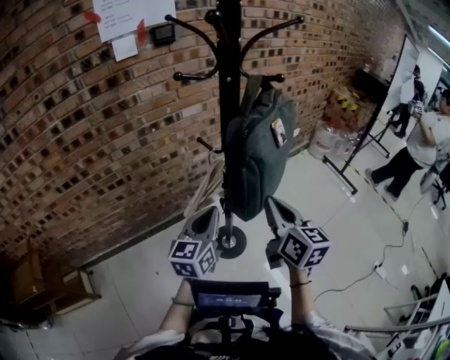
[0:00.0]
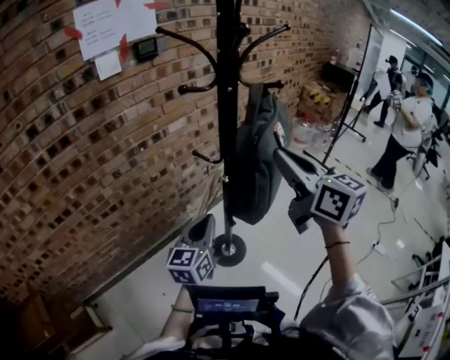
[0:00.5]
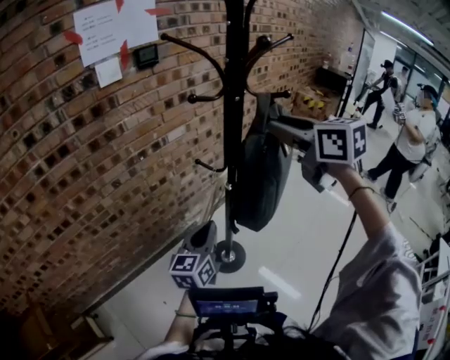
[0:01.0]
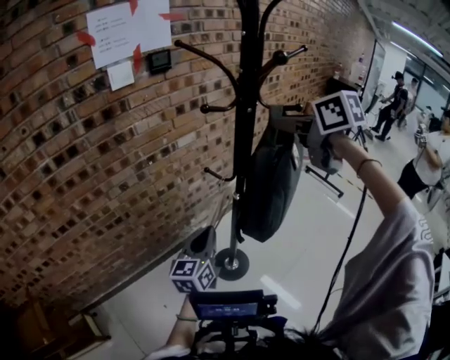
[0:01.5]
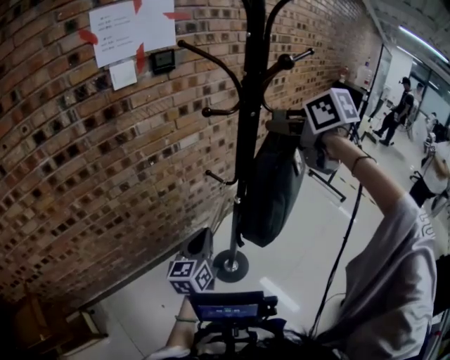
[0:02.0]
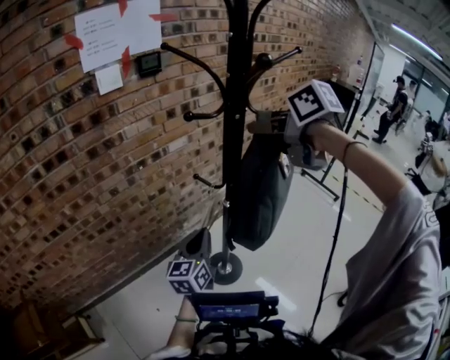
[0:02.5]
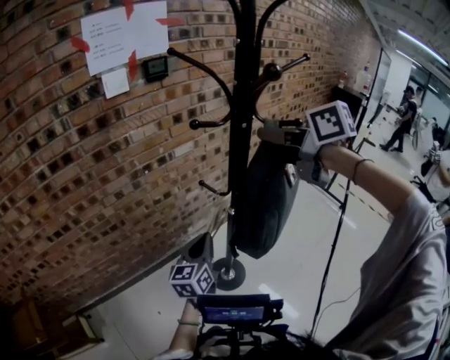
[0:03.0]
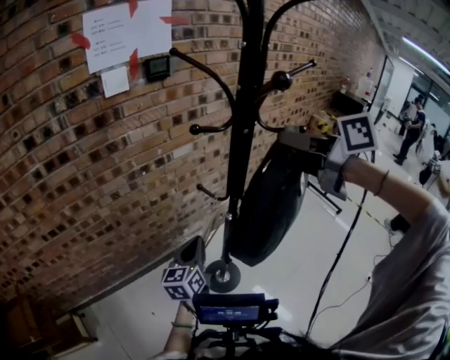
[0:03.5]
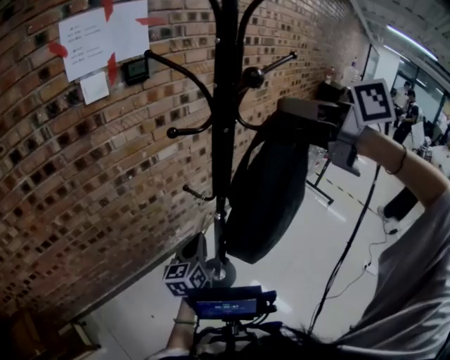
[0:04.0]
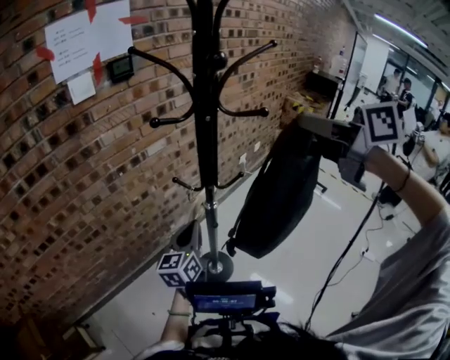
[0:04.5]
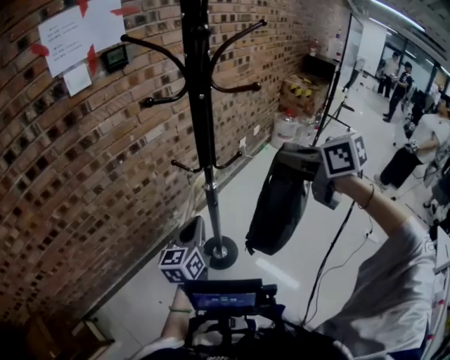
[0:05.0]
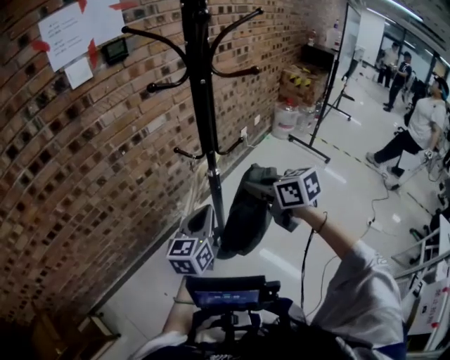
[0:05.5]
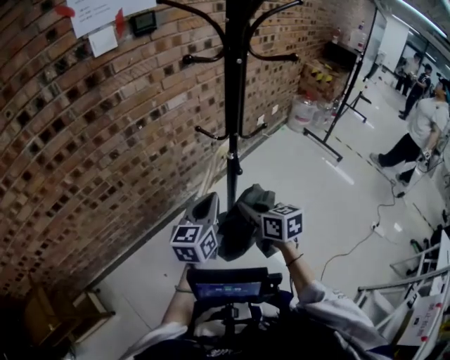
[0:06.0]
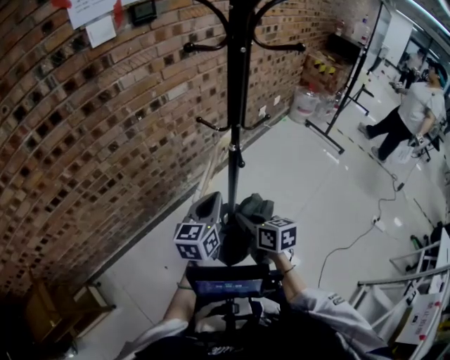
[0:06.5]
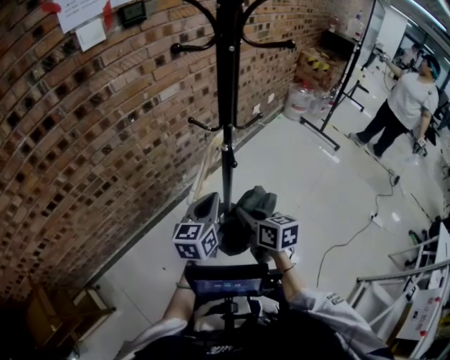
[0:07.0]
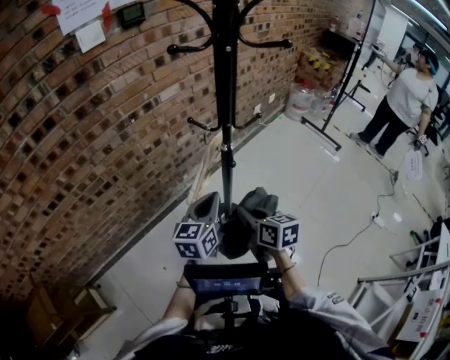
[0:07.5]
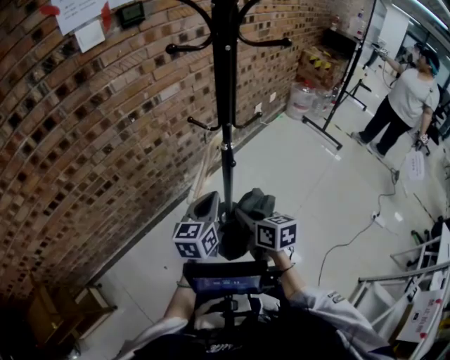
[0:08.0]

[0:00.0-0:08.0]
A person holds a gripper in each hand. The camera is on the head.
0:00.0 to 0:02.0: The left gripper goes approximately 10 cm to the left and forward. The right gripper travels upward and forward by approximately 30 cm, turns by about 30 degrees, and opens its fingers.
0:02.0 to 0:04.0: The right gripper heads upward and backward, covering some 10 cm, changes its angle by about 20 degrees, and closes. Meanwhile the left gripper moves to the right, approximately 5 cm.
0:04.0 to 0:06.0: The right gripper shifts some 50 cm downward, and rotates some 20 degrees. Meanwhile the left gripper moves backward, some 10 cm.
0:06.0 to 0:08.0: The right gripper shifts by approximately 5 cm.

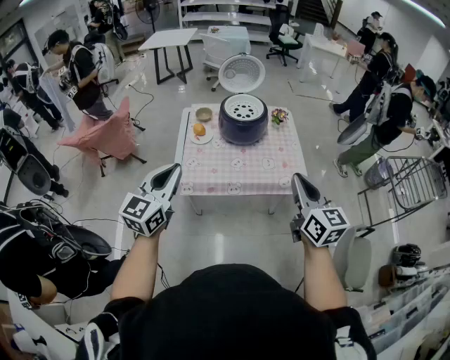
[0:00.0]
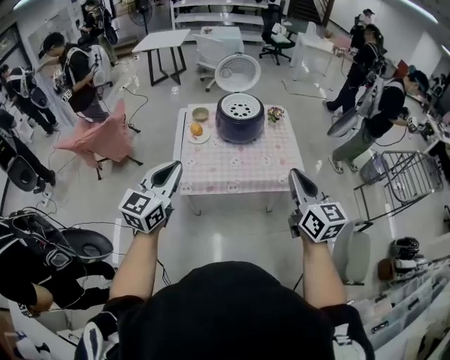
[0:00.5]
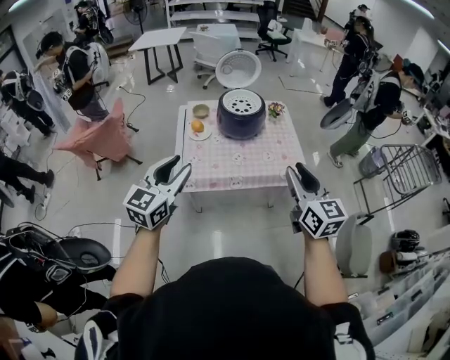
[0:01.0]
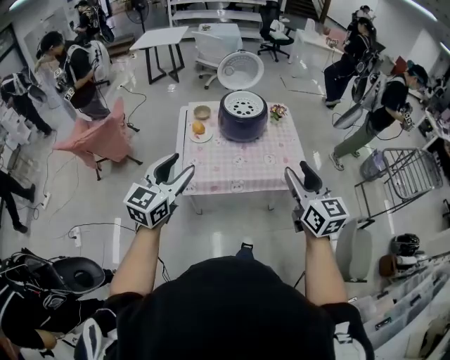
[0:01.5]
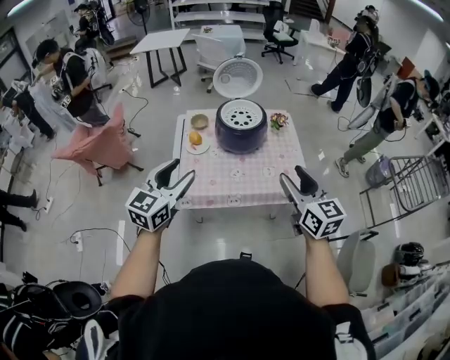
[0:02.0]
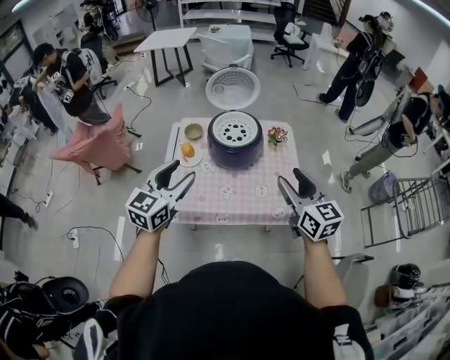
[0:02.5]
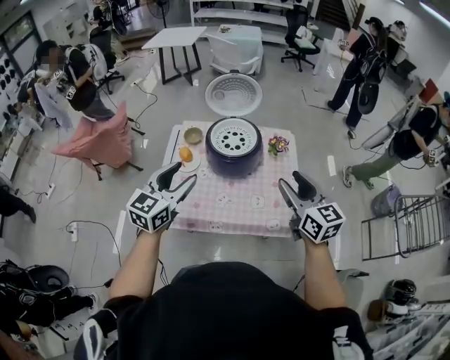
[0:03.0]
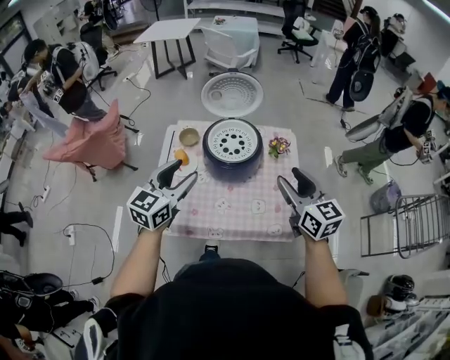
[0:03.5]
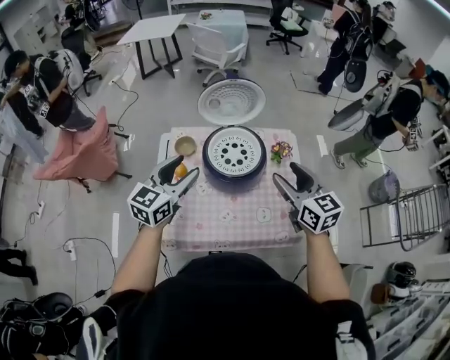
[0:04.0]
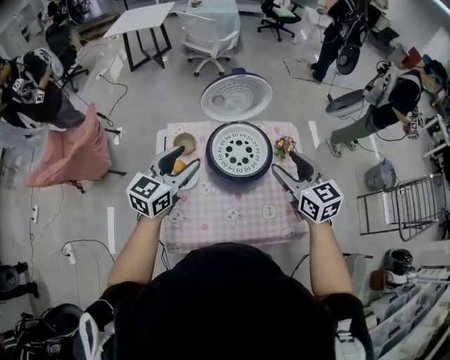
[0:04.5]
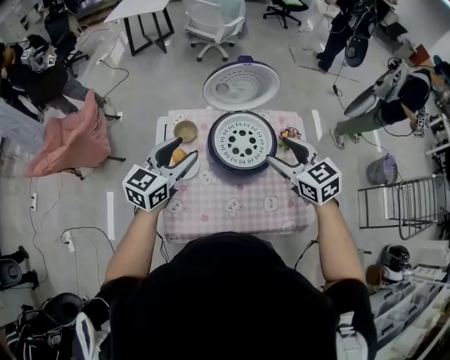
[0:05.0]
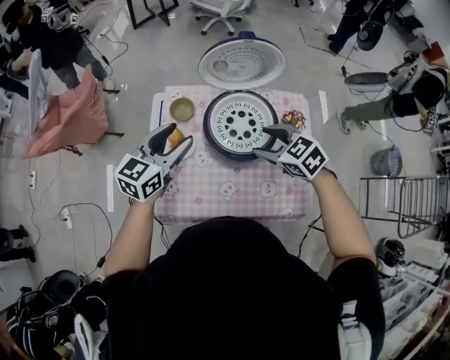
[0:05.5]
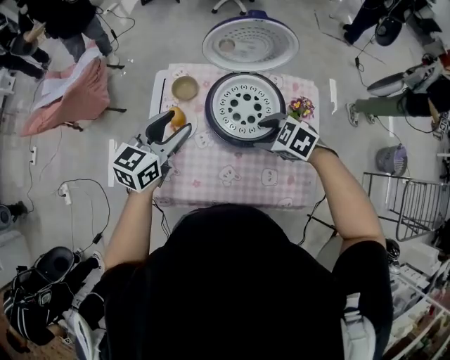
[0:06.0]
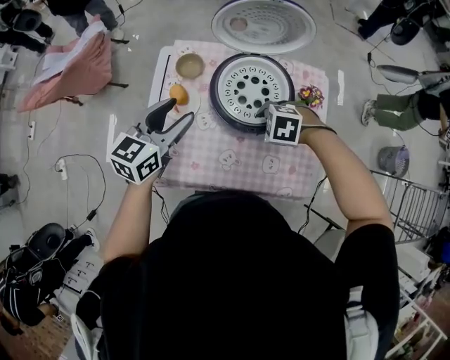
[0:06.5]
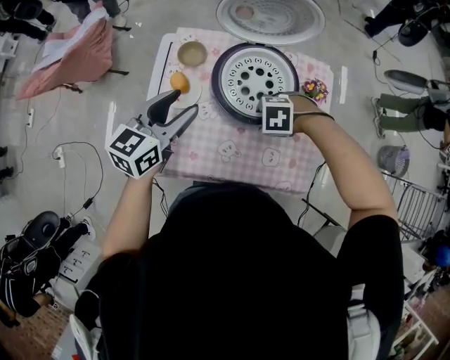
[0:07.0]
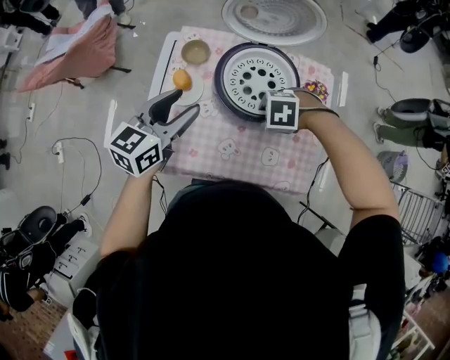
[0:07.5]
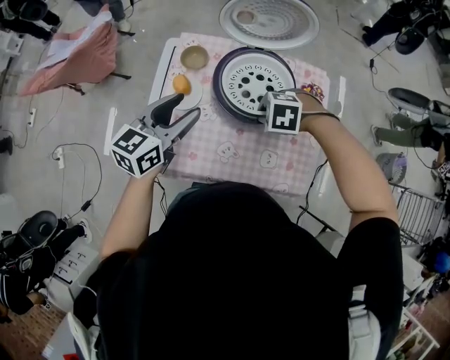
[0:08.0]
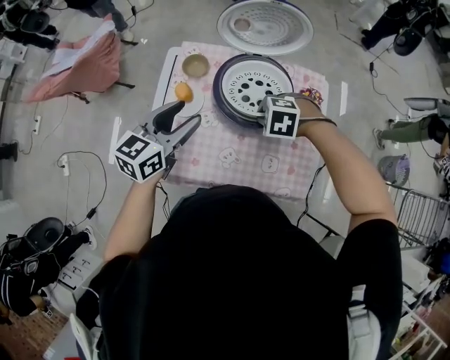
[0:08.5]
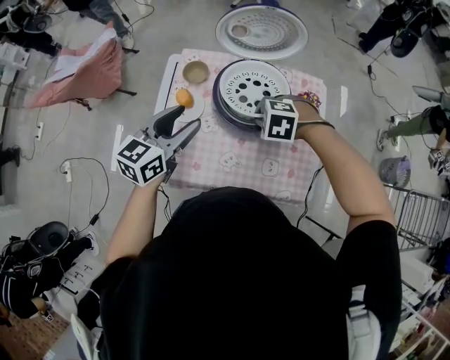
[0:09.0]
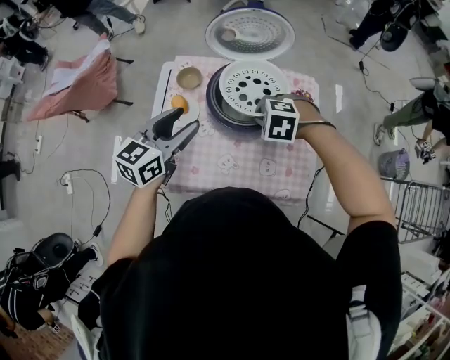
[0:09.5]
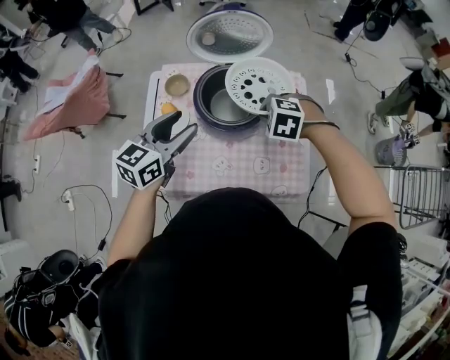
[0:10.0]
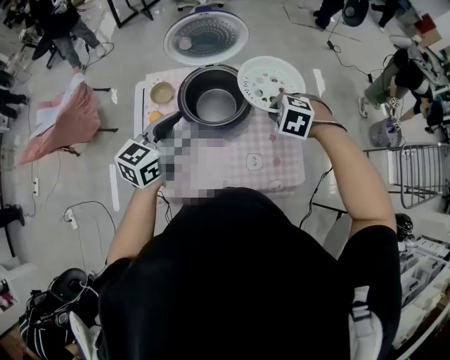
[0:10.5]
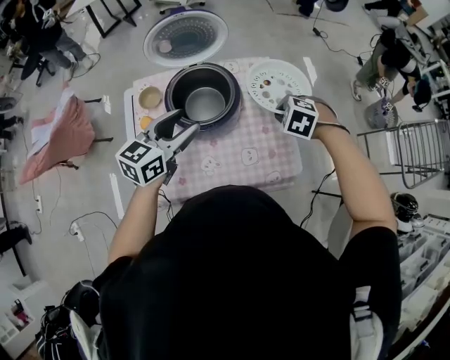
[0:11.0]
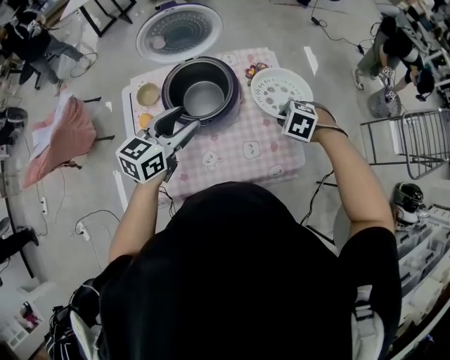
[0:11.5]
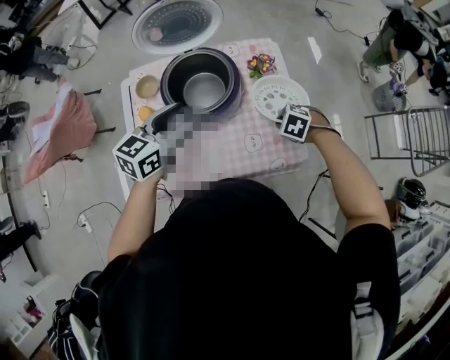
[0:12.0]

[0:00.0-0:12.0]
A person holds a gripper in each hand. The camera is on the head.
0:00.0 to 0:02.0: Both grippers move forward, about 10 cm. The right gripper opens up, while the left gripper opens its fingers.
0:02.0 to 0:04.0: Both grippers move forward, some 30 cm.
0:04.0 to 0:06.0: The left gripper heads downward, covering some 10 cm, while the right gripper travels downward by approximately 20 cm, and tilts its fingers about 40 degrees downward.
0:06.0 to 0:08.0: The right gripper rotates approximately 30 degrees, and closes.
0:08.0 to 0:10.0: The left gripper moves roughly 5 cm, while the right gripper changes place by some 10 cm.
0:10.0 to 0:12.0: The right gripper ends up approximately 20 cm from where it was, and changes its angle by approximately 30 degrees. The left gripper shifts by approximately 10 cm.

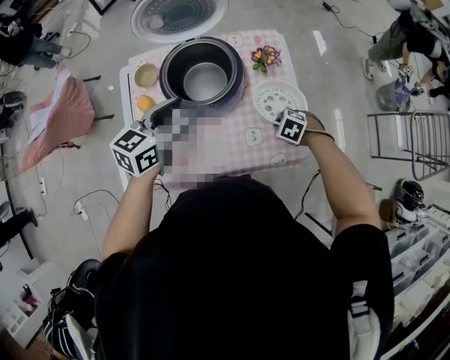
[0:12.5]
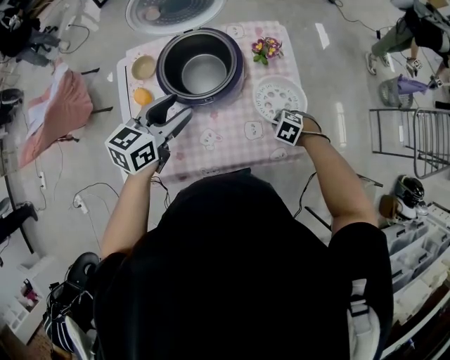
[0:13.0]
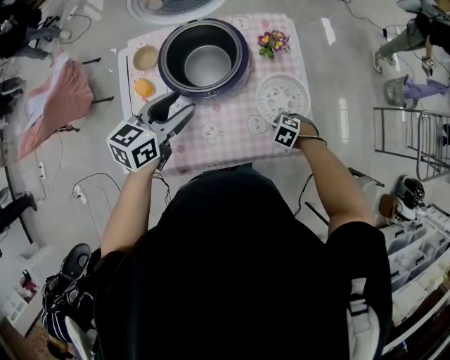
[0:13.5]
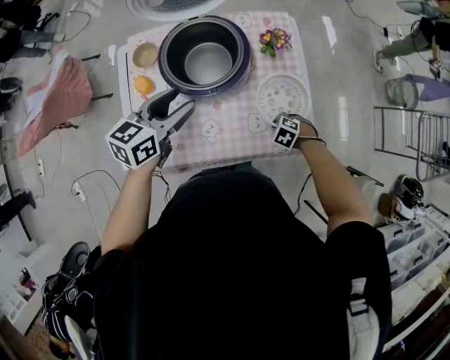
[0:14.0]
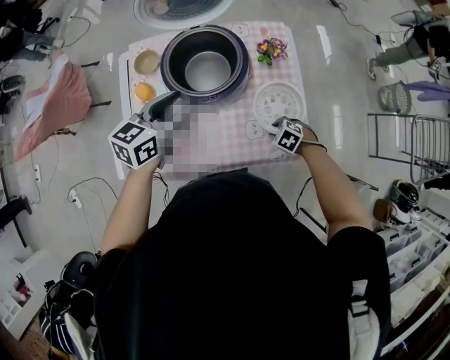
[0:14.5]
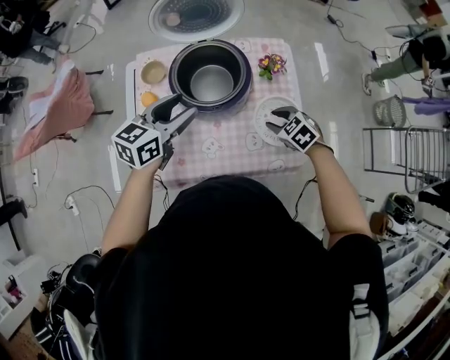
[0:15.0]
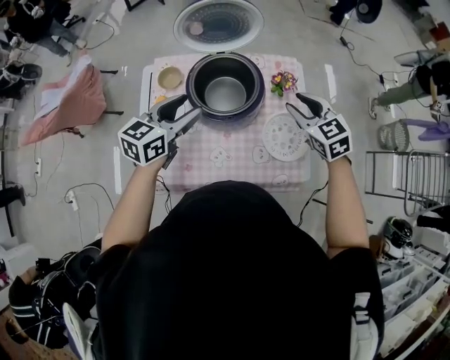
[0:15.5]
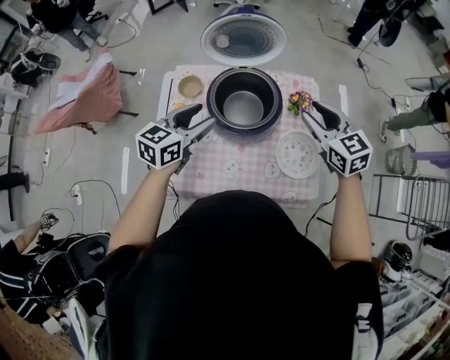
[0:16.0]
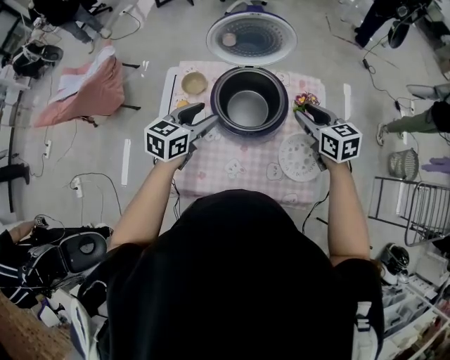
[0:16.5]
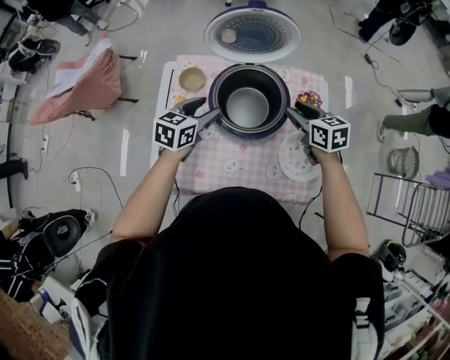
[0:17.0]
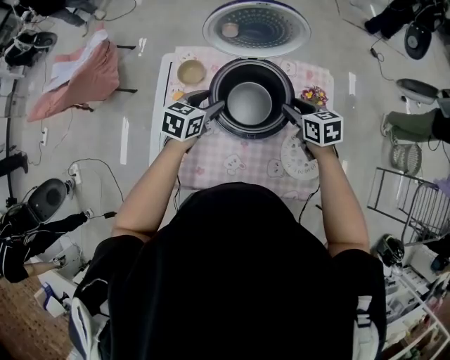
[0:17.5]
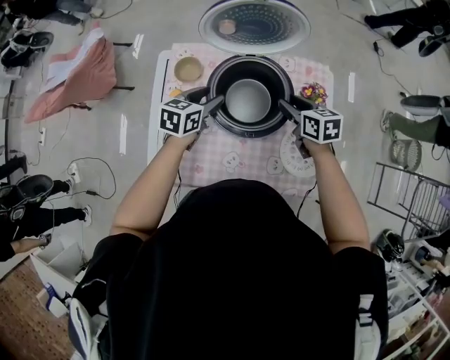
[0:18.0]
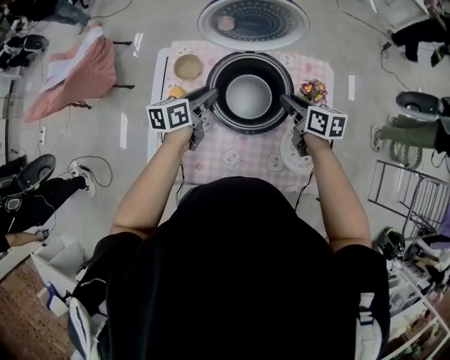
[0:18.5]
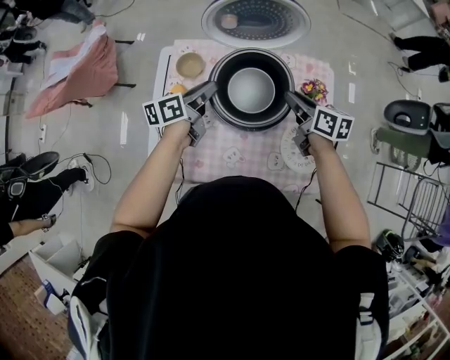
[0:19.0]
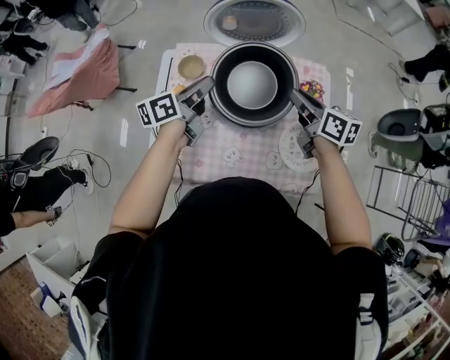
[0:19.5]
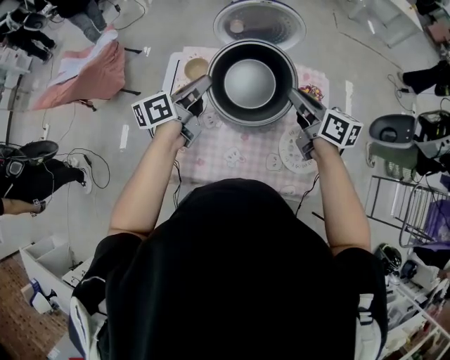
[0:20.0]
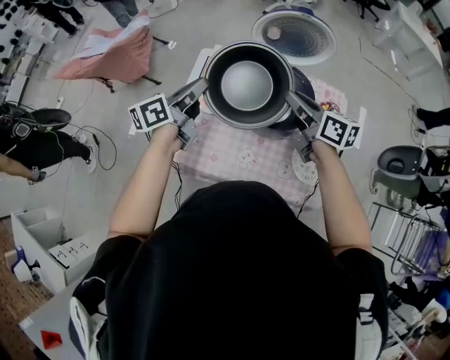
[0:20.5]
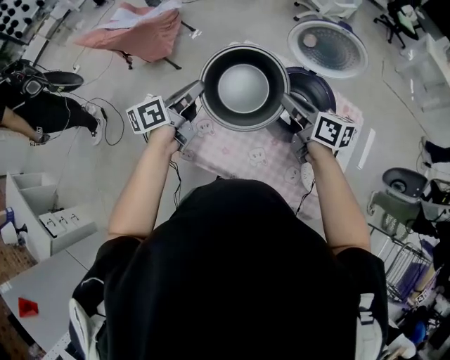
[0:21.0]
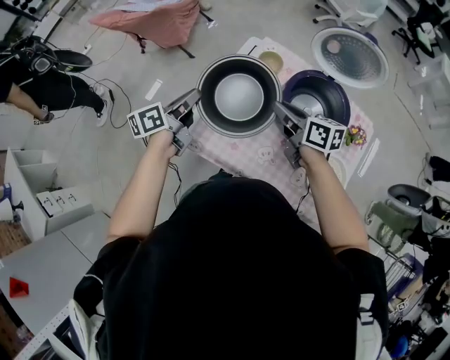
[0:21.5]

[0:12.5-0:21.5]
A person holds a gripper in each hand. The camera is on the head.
0:12.5 to 0:14.5: The right gripper travels downward by some 5 cm, and opens its fingers.
0:14.5 to 0:17.0: The left gripper ends up some 10 cm from where it was. Meanwhile the right gripper shifts by approximately 35 cm, and angles its fingers upward, by roughly 40 degrees.
0:17.0 to 0:19.5: The left gripper rotates approximately 40 degrees, and closes. The right gripper is displaced upward by about 5 cm, swivels some 30 degrees, and closes.
0:19.5 to 0:21.5: The left gripper goes upward and returns, some 10 cm each way, and changes its angle by some 30 degrees, while the right gripper reaches some 10 cm upward, then returns, and changes its angle by about 30 degrees.
